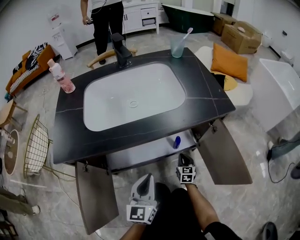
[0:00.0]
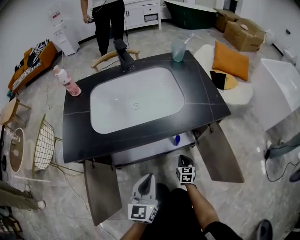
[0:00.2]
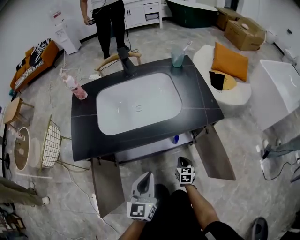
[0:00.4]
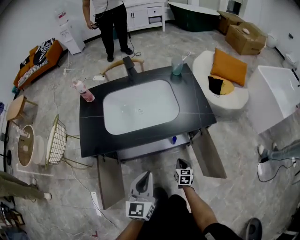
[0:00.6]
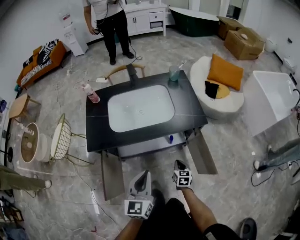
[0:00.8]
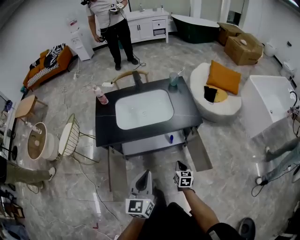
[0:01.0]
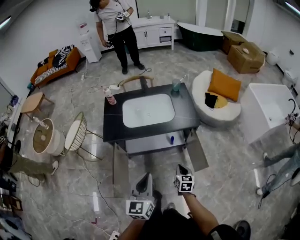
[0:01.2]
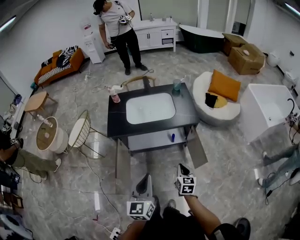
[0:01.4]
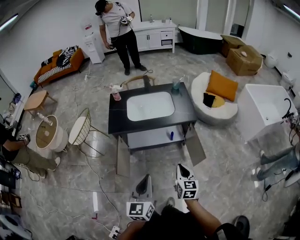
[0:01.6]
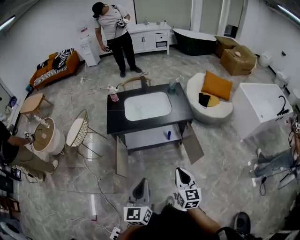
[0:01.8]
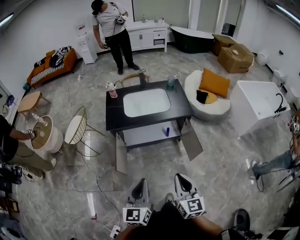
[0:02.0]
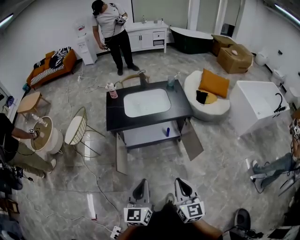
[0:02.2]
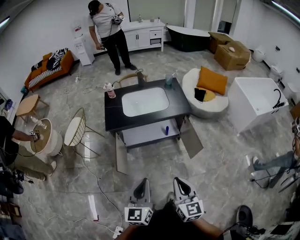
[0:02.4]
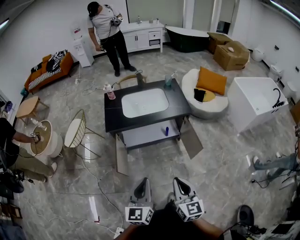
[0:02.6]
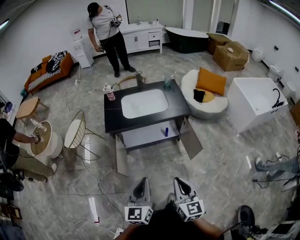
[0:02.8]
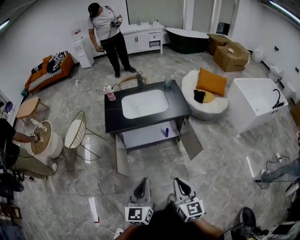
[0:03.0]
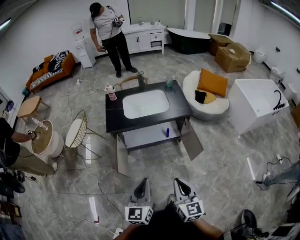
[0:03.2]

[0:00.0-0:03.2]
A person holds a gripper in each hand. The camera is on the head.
0:00.0 to 0:01.6: The two grippers go about 70 cm upward and backward.
0:01.6 to 0:03.2: The right gripper shifts some 20 cm backward, upward and to the left. The left gripper is displaced backward by about 5 cm.

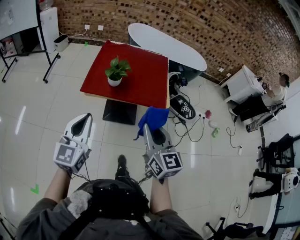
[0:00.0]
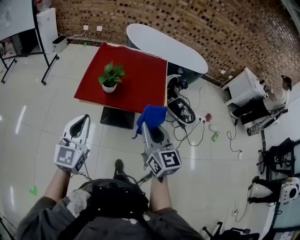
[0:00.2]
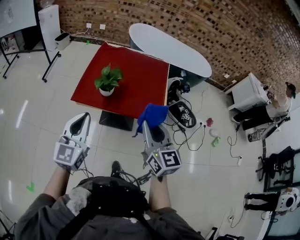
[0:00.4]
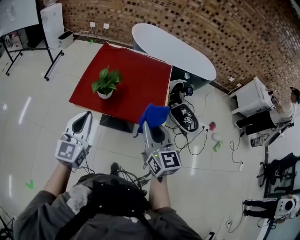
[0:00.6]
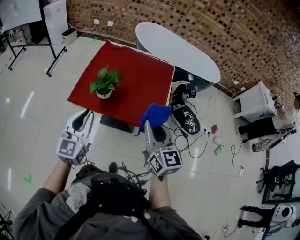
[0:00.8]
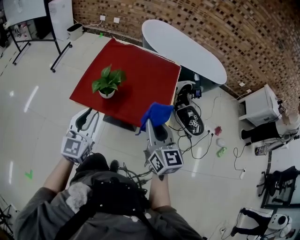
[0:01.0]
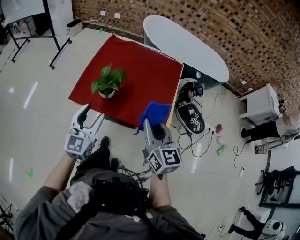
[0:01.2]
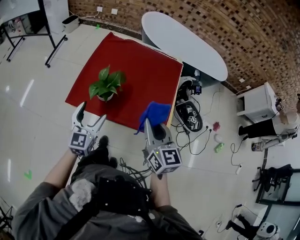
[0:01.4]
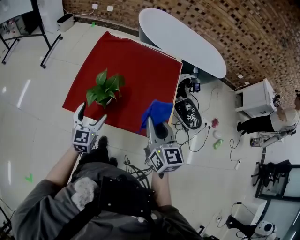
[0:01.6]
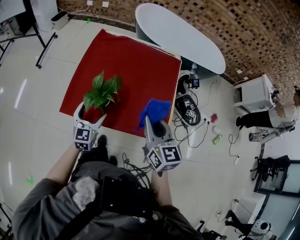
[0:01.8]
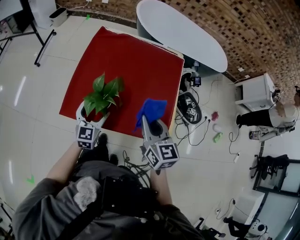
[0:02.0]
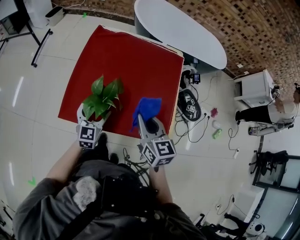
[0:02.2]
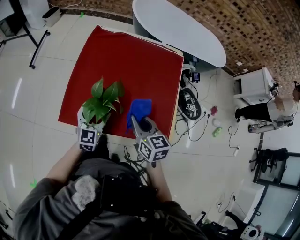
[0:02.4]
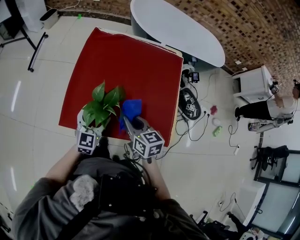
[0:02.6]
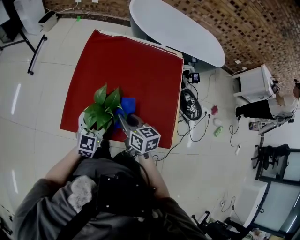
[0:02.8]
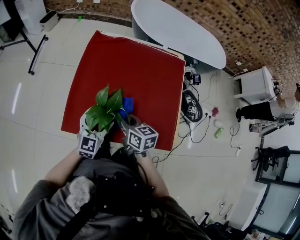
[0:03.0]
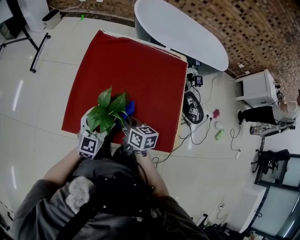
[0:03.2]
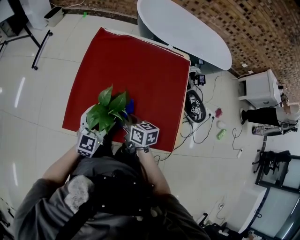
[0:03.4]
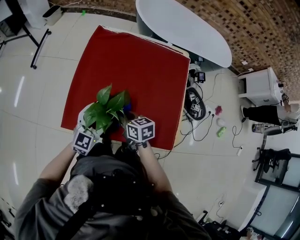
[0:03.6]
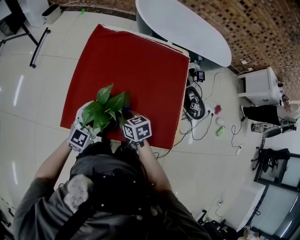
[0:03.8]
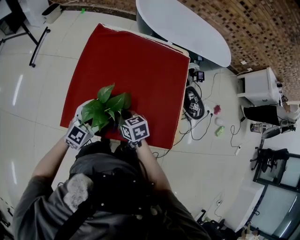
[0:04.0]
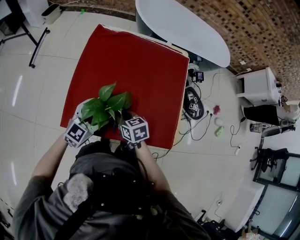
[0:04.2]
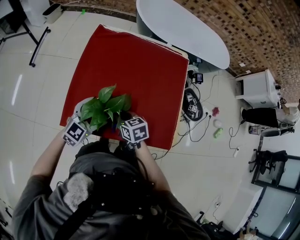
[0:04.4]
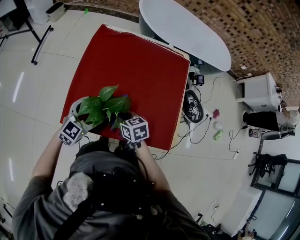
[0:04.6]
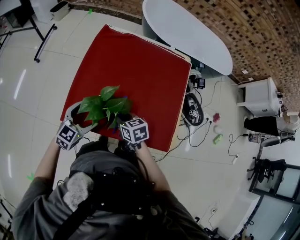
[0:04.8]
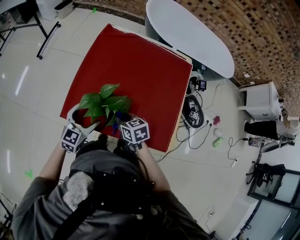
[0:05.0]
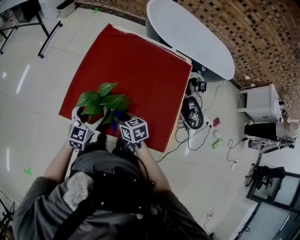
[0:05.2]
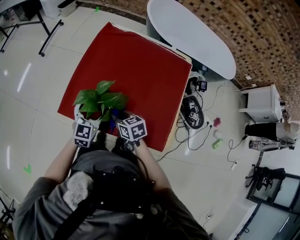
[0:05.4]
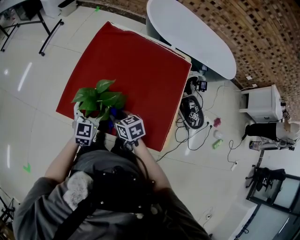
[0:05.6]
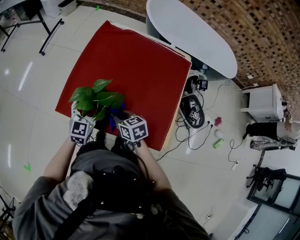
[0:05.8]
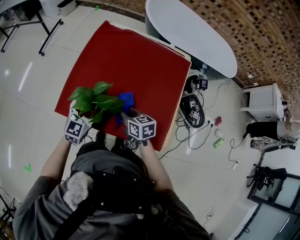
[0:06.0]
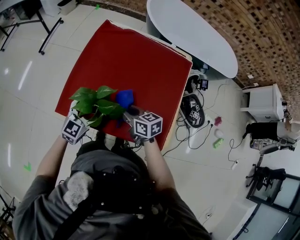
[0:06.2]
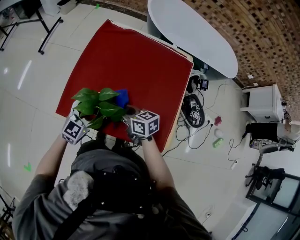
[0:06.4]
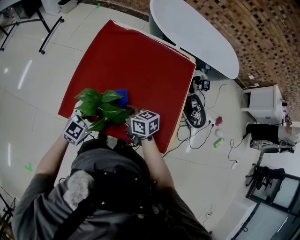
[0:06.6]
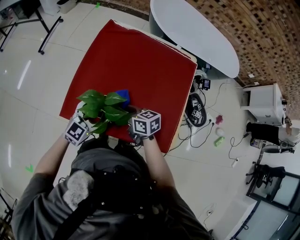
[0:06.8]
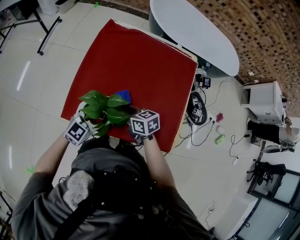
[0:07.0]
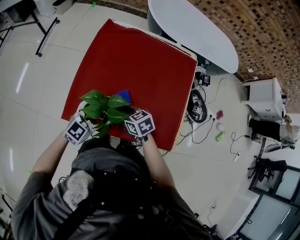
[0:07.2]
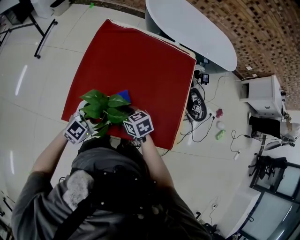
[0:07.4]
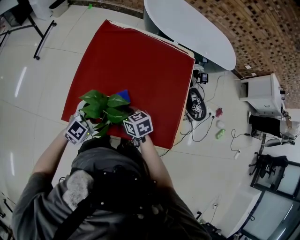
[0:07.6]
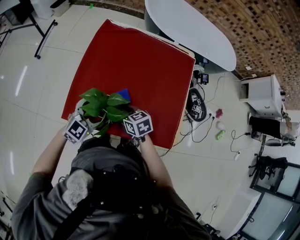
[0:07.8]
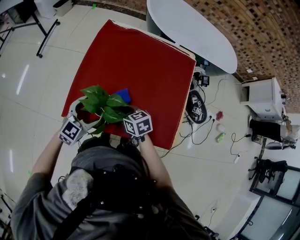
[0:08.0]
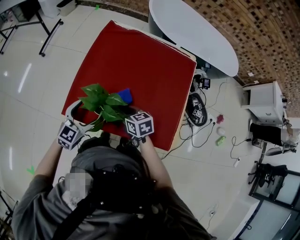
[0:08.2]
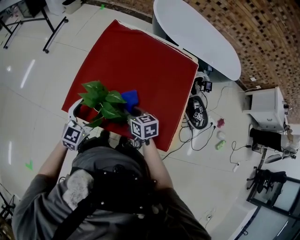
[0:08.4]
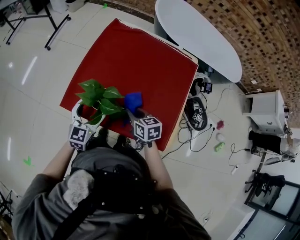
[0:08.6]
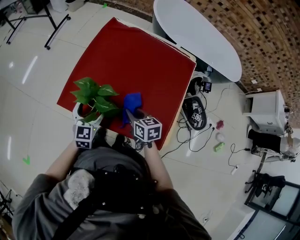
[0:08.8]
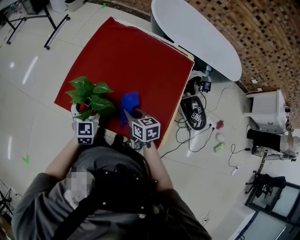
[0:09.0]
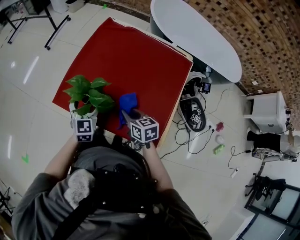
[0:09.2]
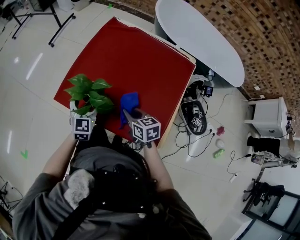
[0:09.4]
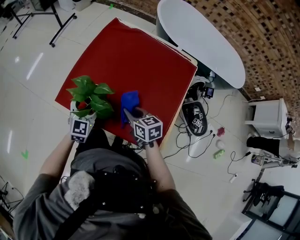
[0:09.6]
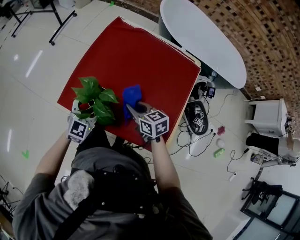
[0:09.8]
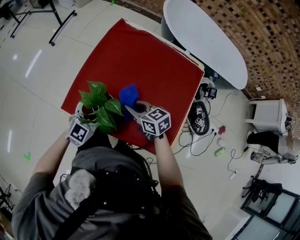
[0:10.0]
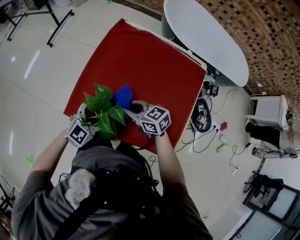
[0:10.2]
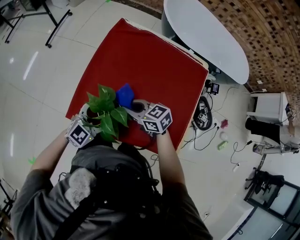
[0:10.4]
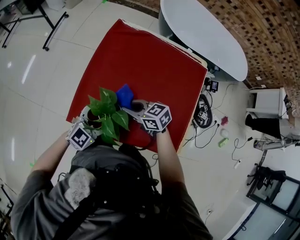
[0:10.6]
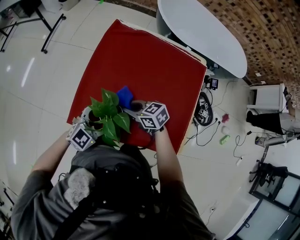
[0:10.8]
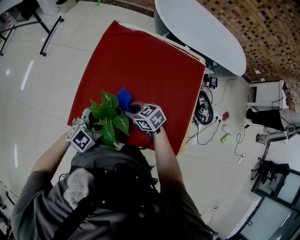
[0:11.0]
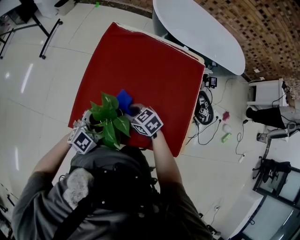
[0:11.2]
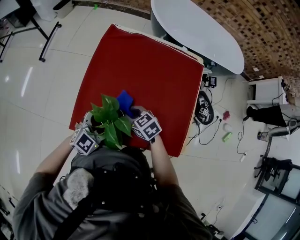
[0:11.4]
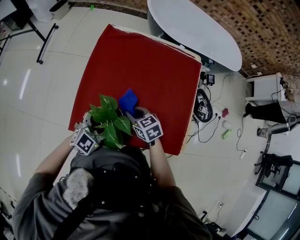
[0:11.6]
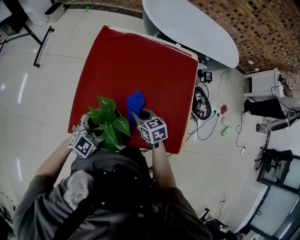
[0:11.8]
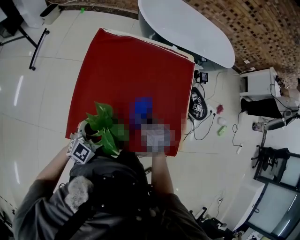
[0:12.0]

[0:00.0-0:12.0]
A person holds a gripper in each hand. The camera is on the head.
0:00.0 to 0:01.6: The two grippers travel together, forward, some 40 cm. The left gripper goes some 20 cm downward, and opens its fingers.
0:01.6 to 0:03.0: The right gripper heads downward, forward and to the left, covering some 30 cm, and swivels approximately 30 degrees. The left gripper goes roughly 15 cm forward and downward.
0:03.0 to 0:04.4: The right gripper travels downward by approximately 5 cm, and rotates some 20 degrees; the left gripper changes its angle by approximately 20 degrees.
0:04.4 to 0:06.0: The left gripper rotates approximately 30 degrees. The right gripper changes place by approximately 10 cm.
0:06.0 to 0:07.6: The left gripper turns by approximately 20 degrees. Meanwhile the right gripper heads to the left, covering some 10 cm.
0:07.6 to 0:09.0: The right gripper goes some 15 cm to the right and backward; the left gripper swivels approximately 50 degrees.
0:09.0 to 0:10.4: The left gripper changes its angle by approximately 50 degrees, while the right gripper moves forward and to the left, some 15 cm, and turns by approximately 30 degrees.
0:10.4 to 0:12.0: The right gripper changes place by some 10 cm, and rotates roughly 40 degrees.

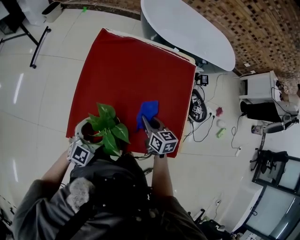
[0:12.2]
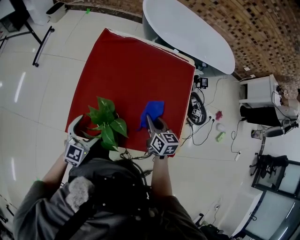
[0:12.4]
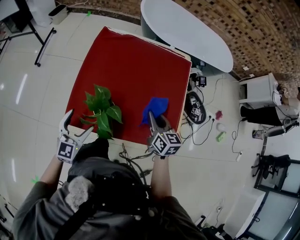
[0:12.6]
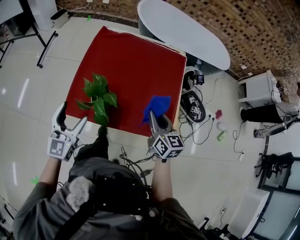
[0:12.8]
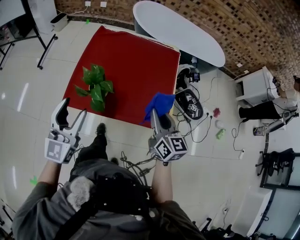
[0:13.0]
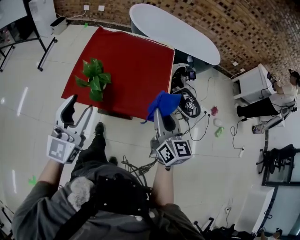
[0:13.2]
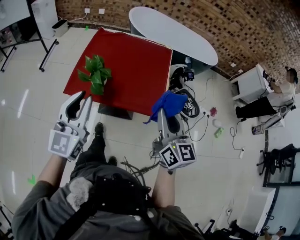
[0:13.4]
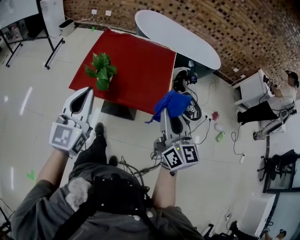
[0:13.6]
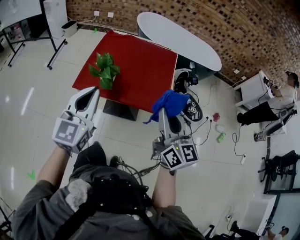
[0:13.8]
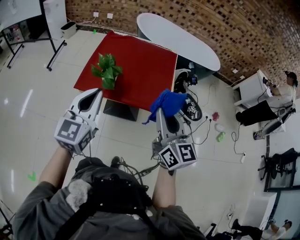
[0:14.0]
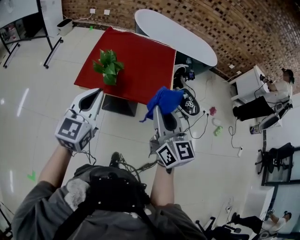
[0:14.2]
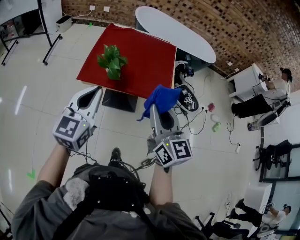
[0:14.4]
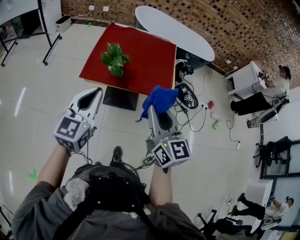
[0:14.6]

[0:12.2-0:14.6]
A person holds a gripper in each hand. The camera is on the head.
0:12.2 to 0:13.4: Both grippers move backward and upward, some 50 cm. The left gripper turns by roughly 40 degrees, and closes its fingers, while the right gripper tilts its fingers roughly 30 degrees upward.
0:13.4 to 0:14.6: The left gripper travels backward and to the left by some 15 cm. The right gripper is displaced to the left and backward by approximately 25 cm.

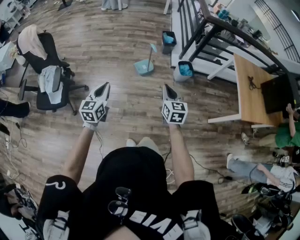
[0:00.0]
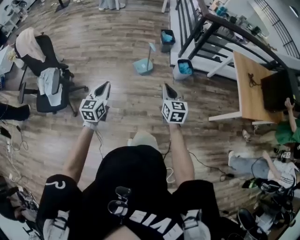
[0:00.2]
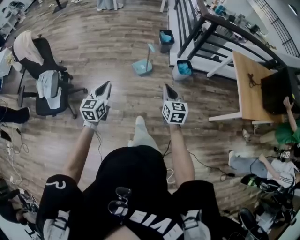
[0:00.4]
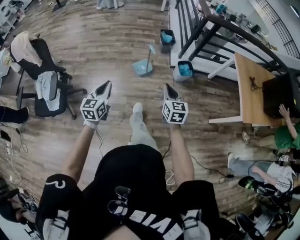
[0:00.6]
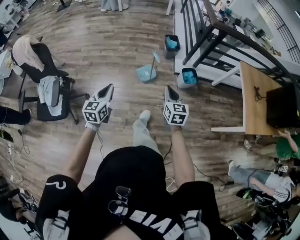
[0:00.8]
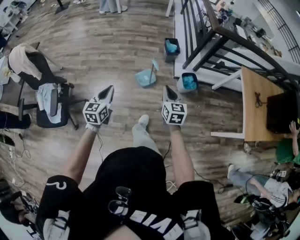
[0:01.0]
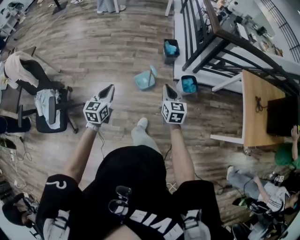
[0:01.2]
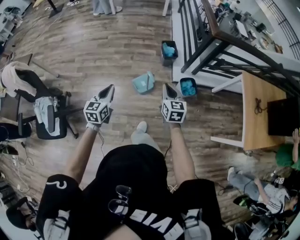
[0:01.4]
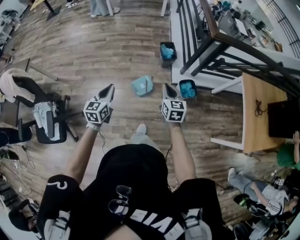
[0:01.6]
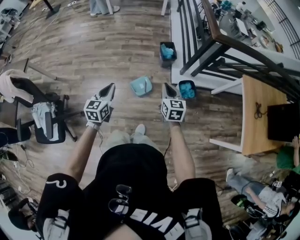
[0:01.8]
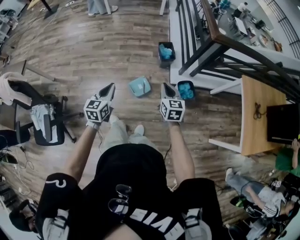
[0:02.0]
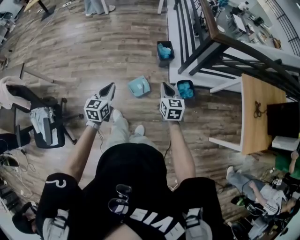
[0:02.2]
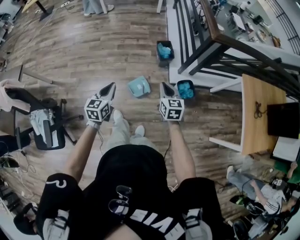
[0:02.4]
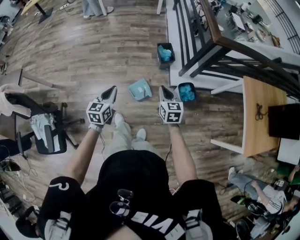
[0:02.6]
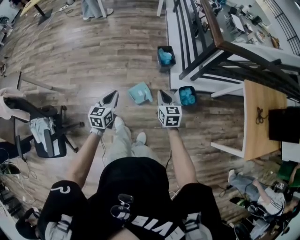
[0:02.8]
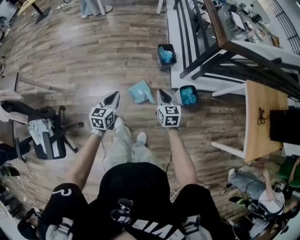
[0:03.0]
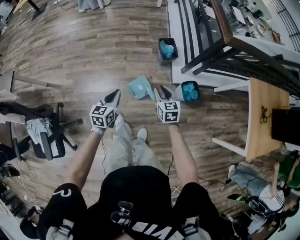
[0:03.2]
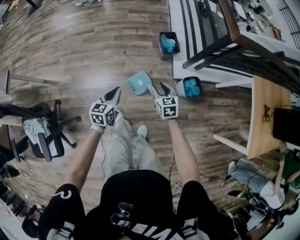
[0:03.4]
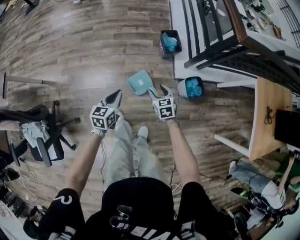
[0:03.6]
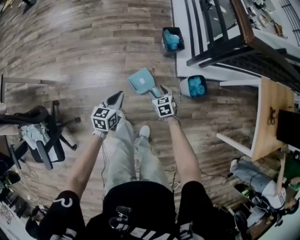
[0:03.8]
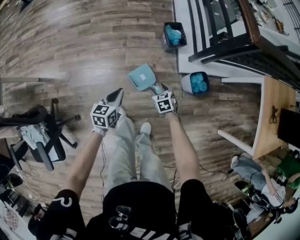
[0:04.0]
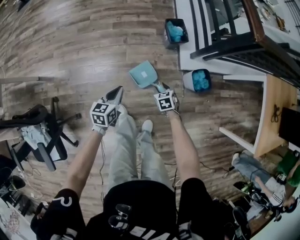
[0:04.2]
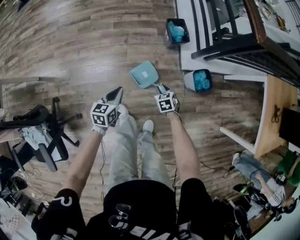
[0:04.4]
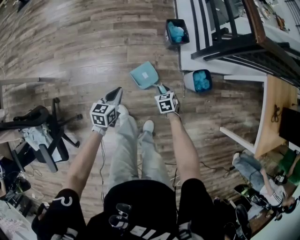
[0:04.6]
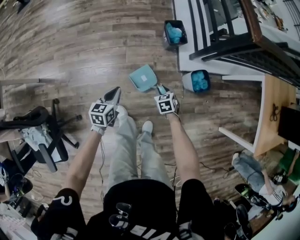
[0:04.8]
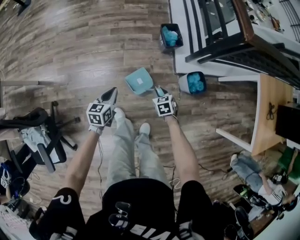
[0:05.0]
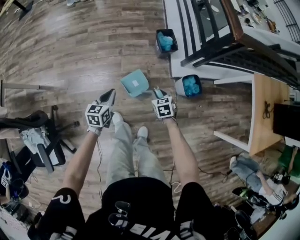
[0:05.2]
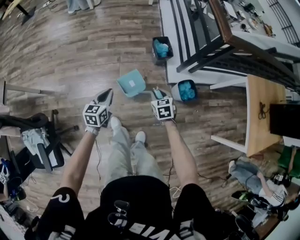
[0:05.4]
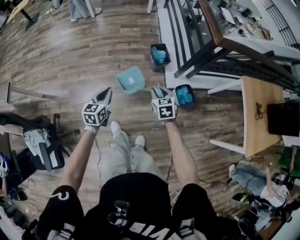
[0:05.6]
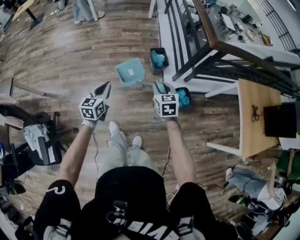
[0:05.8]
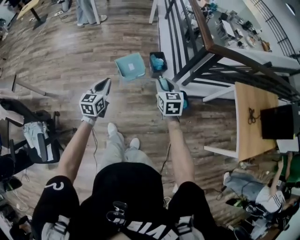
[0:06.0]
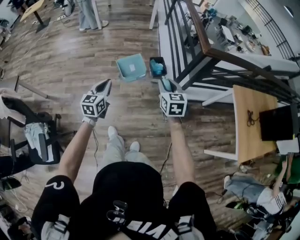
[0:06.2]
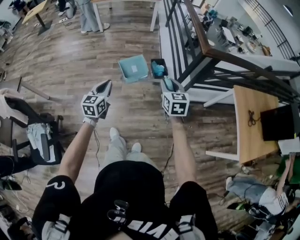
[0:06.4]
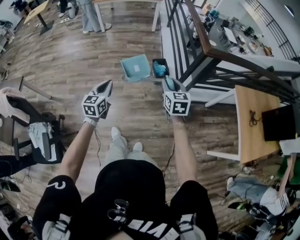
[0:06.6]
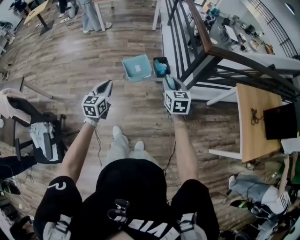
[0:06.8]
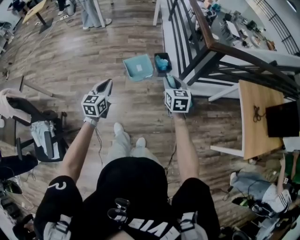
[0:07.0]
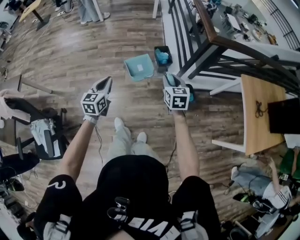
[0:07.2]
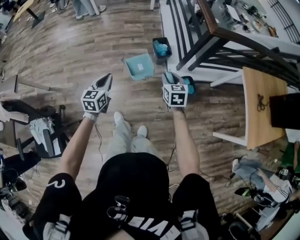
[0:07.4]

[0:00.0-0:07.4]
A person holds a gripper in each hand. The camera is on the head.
0:00.0 to 0:01.4: Both grippers move forward, some 35 cm.
0:01.4 to 0:03.0: Both grippers travel together forward and downward, roughly 20 cm.
0:03.0 to 0:04.4: The right gripper goes some 35 cm downward, tilts its fingers roughly 30 degrees downward, and opens and closes again. The left gripper is displaced downward by roughly 20 cm.
0:04.4 to 0:06.0: The right gripper travels upward by some 40 cm, and points its fingers some 30 degrees further upward. The left gripper travels upward by roughly 30 cm, and changes its angle by roughly 20 degrees.
0:06.0 to 0:07.4: The right gripper heads downward, covering some 5 cm.
